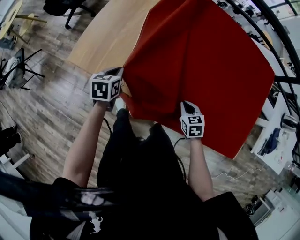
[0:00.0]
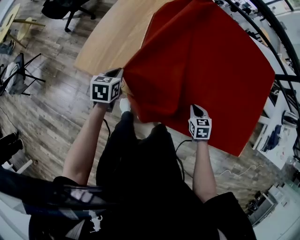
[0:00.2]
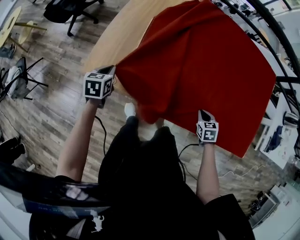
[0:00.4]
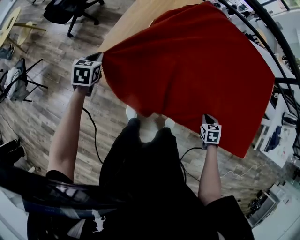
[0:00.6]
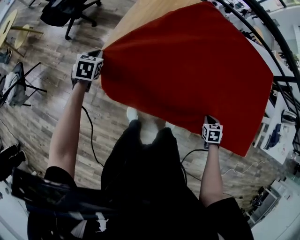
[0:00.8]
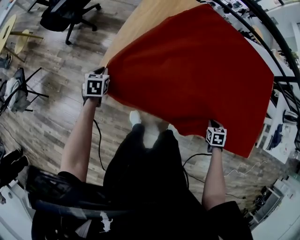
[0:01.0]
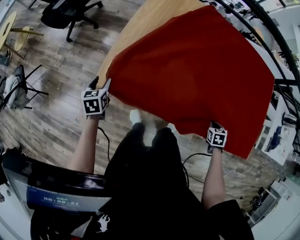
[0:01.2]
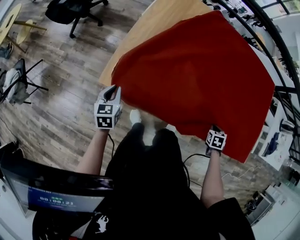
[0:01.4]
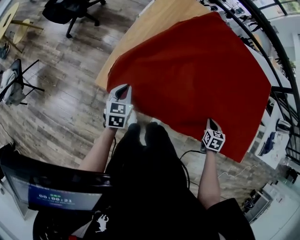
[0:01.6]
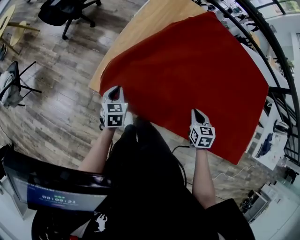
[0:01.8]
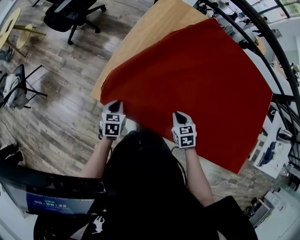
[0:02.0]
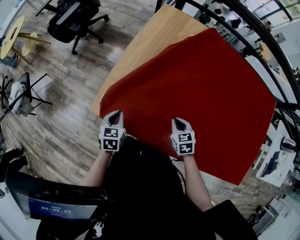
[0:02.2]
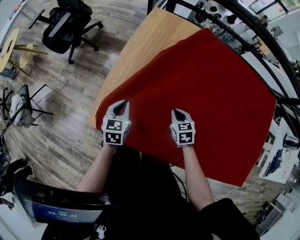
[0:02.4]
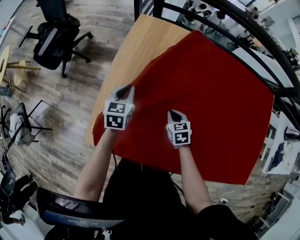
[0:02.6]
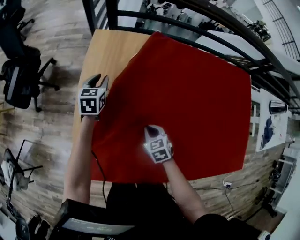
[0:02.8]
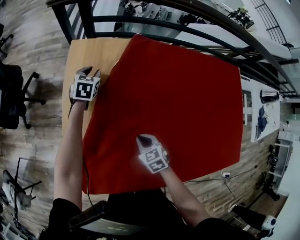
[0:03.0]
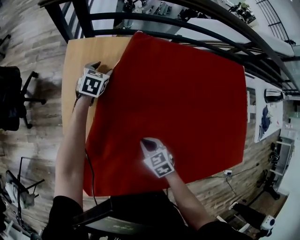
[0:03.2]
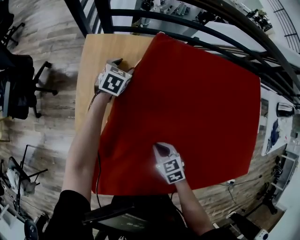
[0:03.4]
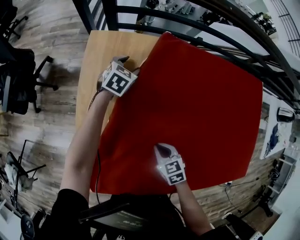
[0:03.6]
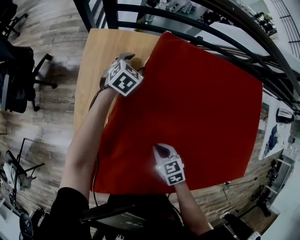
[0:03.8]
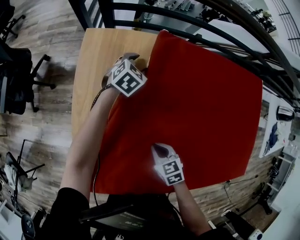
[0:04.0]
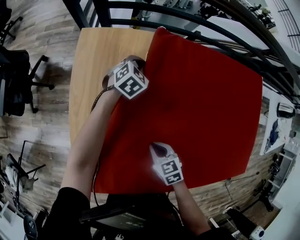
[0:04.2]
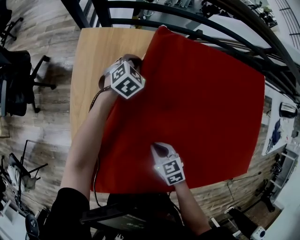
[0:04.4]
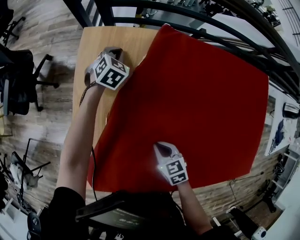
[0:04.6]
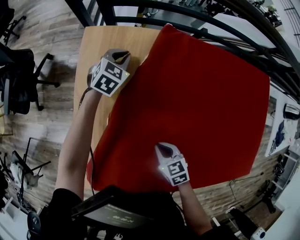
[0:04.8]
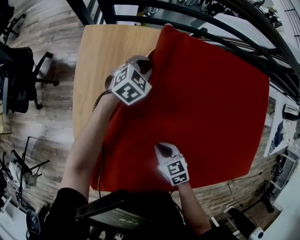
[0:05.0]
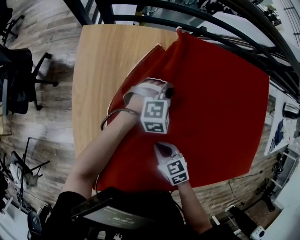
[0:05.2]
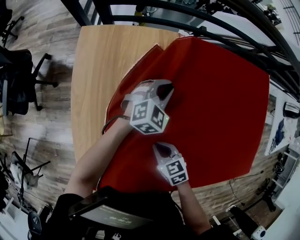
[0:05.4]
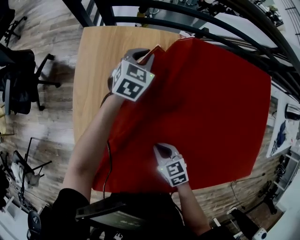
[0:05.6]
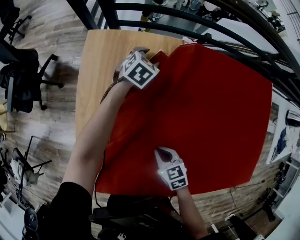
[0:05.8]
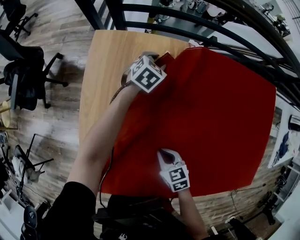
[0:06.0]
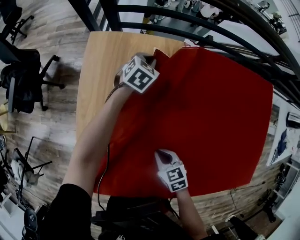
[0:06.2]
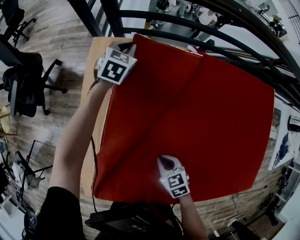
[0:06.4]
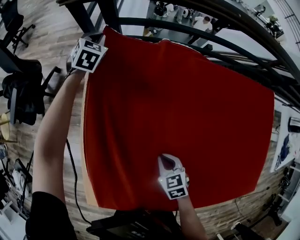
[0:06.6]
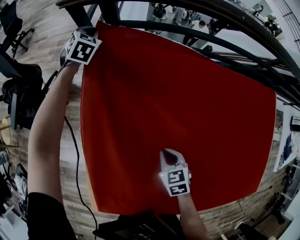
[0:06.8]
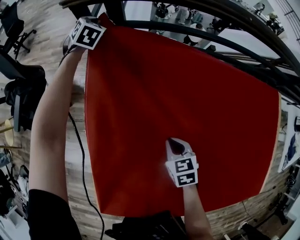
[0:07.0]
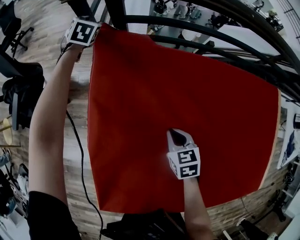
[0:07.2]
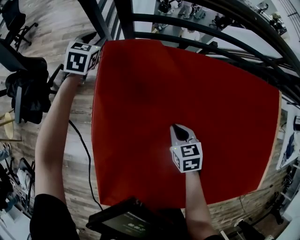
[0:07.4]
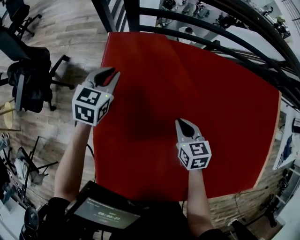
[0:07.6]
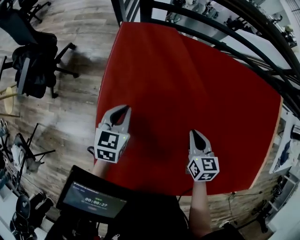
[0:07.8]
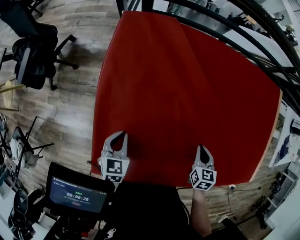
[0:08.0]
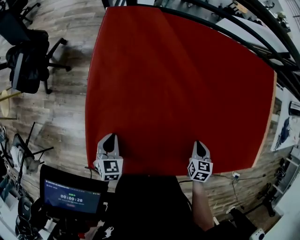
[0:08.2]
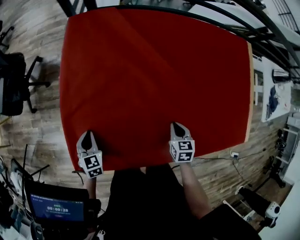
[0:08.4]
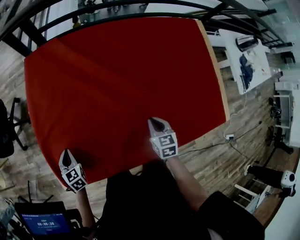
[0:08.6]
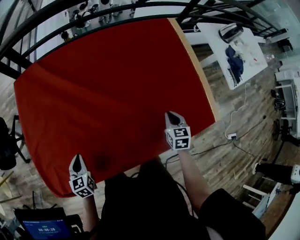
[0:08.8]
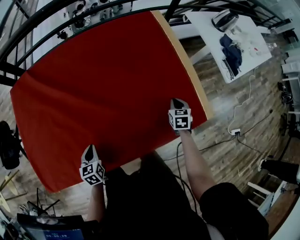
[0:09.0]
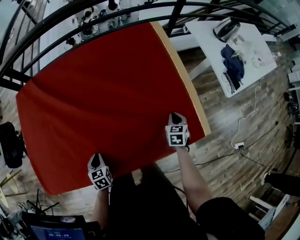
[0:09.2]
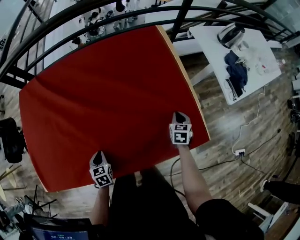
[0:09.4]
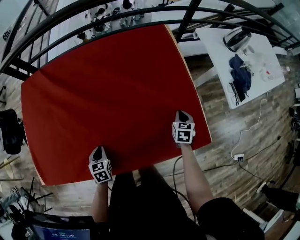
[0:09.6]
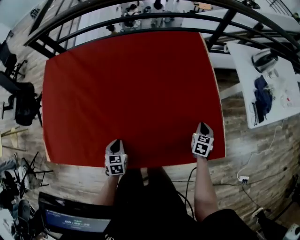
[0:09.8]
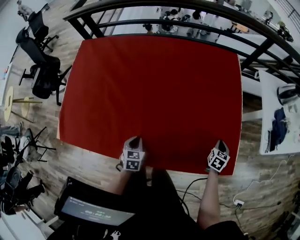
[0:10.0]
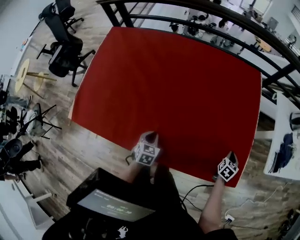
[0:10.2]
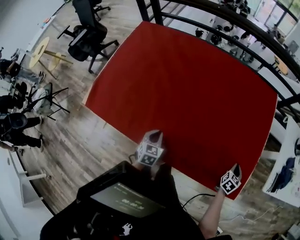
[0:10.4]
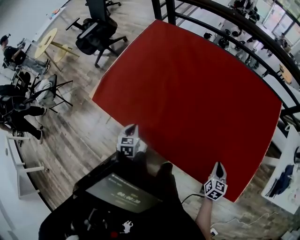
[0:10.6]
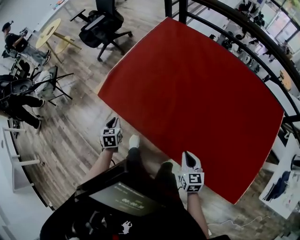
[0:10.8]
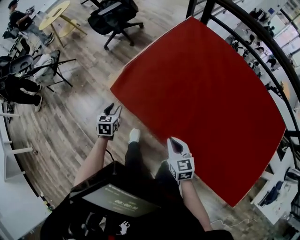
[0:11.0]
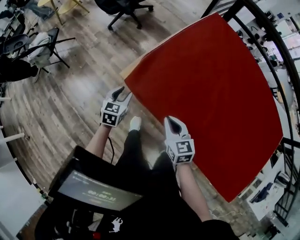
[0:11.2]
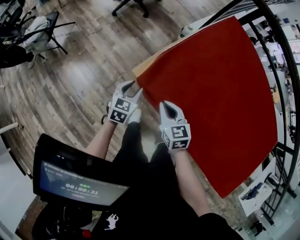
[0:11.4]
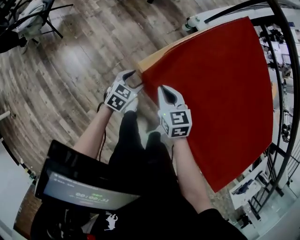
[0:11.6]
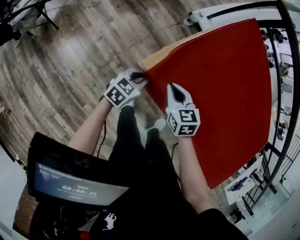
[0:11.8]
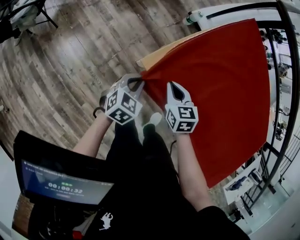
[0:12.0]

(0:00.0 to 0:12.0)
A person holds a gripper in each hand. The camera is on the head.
0:00.0 - 0:01.6: The right gripper changes place by approximately 5 cm, and rotates some 30 degrees. The left gripper moves some 5 cm upward and comes back, and opens, then closes once more.
0:01.6 - 0:03.0: The left gripper is displaced forward by some 50 cm, changes its angle by some 30 degrees, and opens. The right gripper travels forward and to the left by approximately 35 cm, and turns by approximately 20 degrees.
0:03.0 - 0:04.4: The left gripper moves to the right, roughly 15 cm, swivels approximately 30 degrees, and closes its fingers.
0:04.4 - 0:06.0: The left gripper moves left and right over approximately 20 cm, changing direction 2 times, and opens its fingers.
0:06.0 - 0:07.6: The right gripper shifts approximately 15 cm forward. Meanwhile the left gripper heads to the left, covering some 25 cm, and moves about 30 cm forward and comes back.
0:07.6 - 0:09.0: The two grippers travel together, to the right and backward, roughly 70 cm. The right gripper turns by some 40 degrees.
0:09.0 - 0:10.4: The two grippers go approximately 5 cm to the right.
0:10.4 - 0:12.0: Both grippers are carried some 70 cm. The right gripper rotates roughly 70 degrees. The left gripper opens, then closes again.

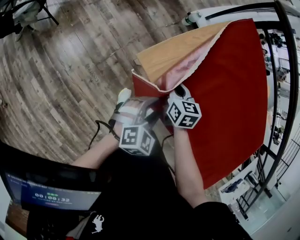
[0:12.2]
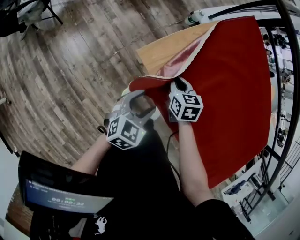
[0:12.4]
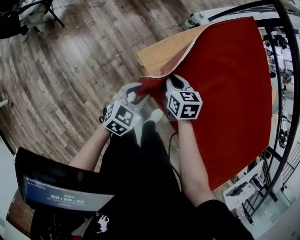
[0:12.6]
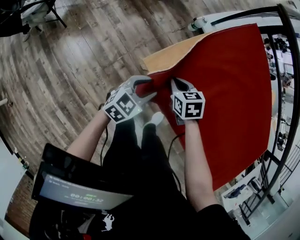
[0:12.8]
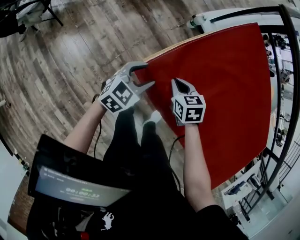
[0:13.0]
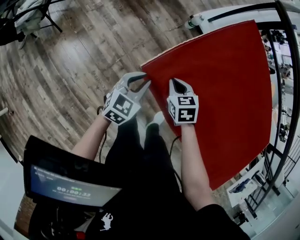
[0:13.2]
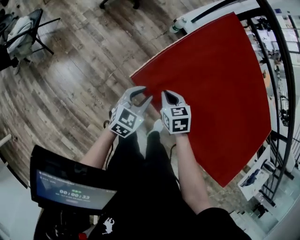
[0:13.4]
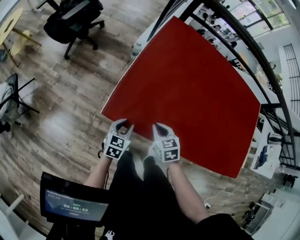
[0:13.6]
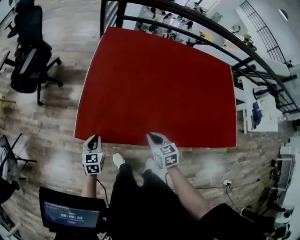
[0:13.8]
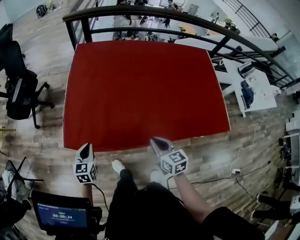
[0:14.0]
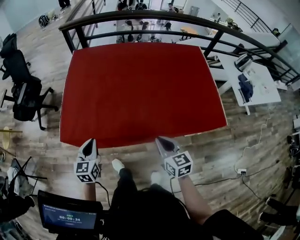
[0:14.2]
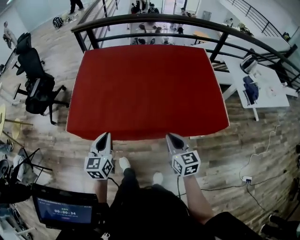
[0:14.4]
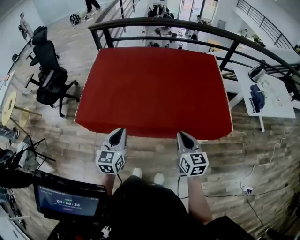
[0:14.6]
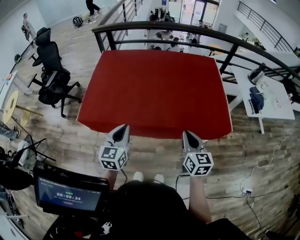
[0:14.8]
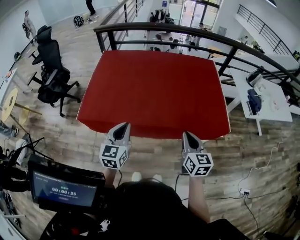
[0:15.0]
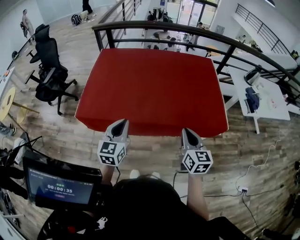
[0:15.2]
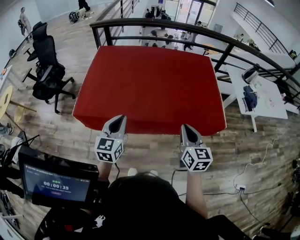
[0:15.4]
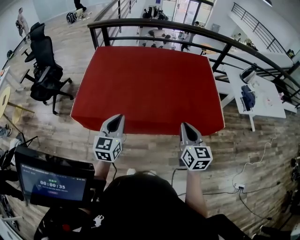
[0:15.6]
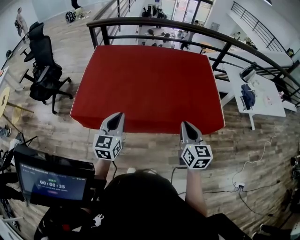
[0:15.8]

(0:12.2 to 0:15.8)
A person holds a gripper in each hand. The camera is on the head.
0:12.2 - 0:14.0: The left gripper shifts approximately 5 cm upward, and closes up; the right gripper changes place by some 40 cm, and changes its angle by some 40 degrees.
0:14.0 - 0:15.8: The left gripper is displaced to the right and upward by roughly 35 cm, and swivels about 20 degrees; the right gripper is displaced to the right, upward and backward by some 30 cm, and rotates some 20 degrees.

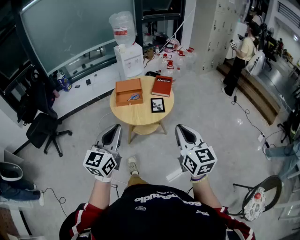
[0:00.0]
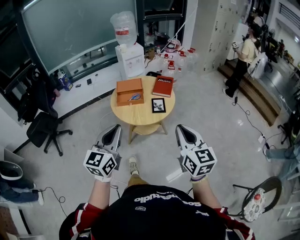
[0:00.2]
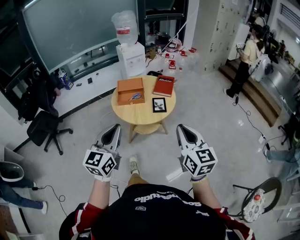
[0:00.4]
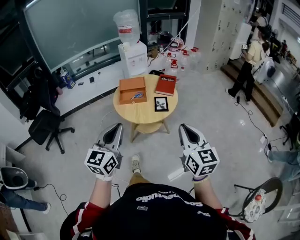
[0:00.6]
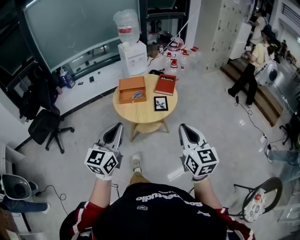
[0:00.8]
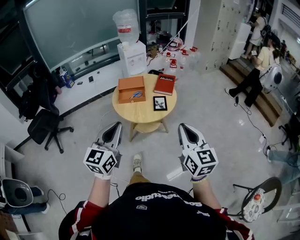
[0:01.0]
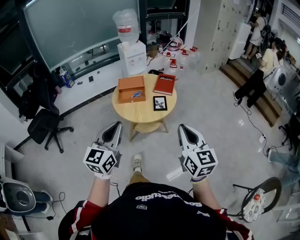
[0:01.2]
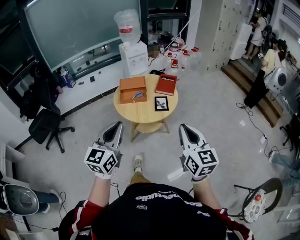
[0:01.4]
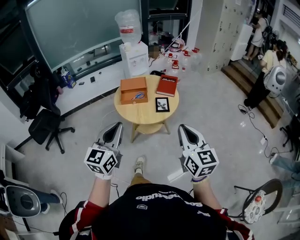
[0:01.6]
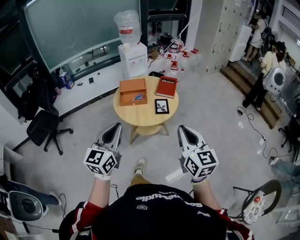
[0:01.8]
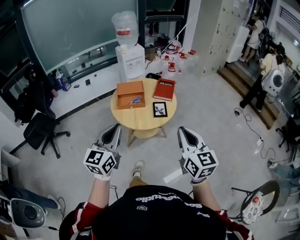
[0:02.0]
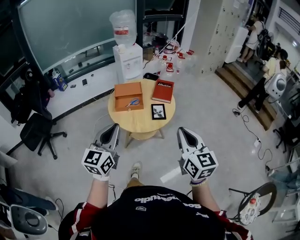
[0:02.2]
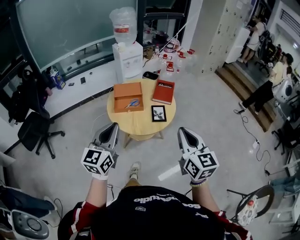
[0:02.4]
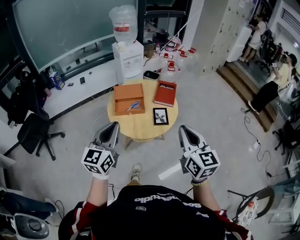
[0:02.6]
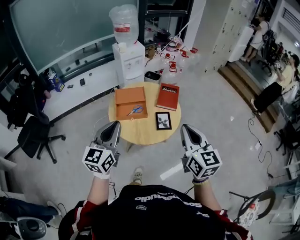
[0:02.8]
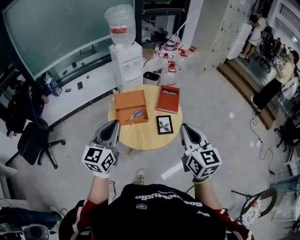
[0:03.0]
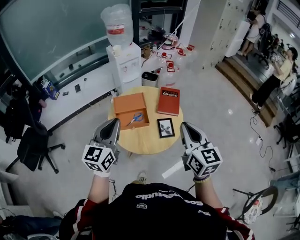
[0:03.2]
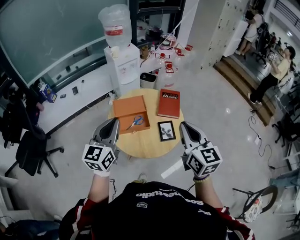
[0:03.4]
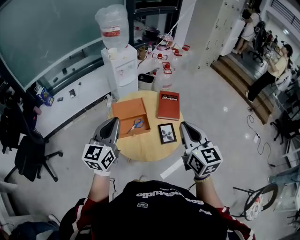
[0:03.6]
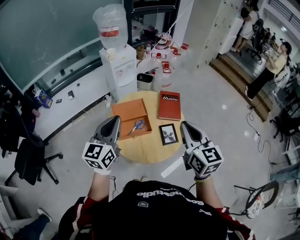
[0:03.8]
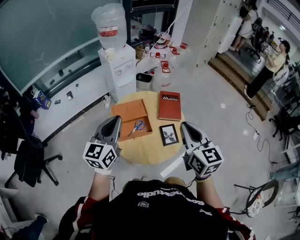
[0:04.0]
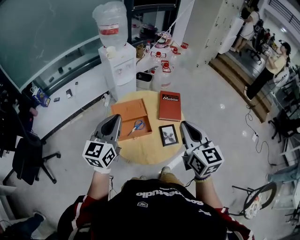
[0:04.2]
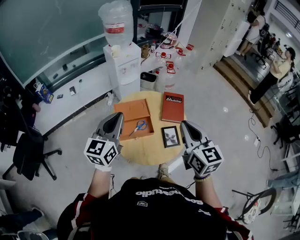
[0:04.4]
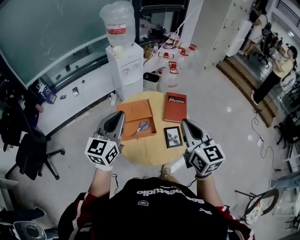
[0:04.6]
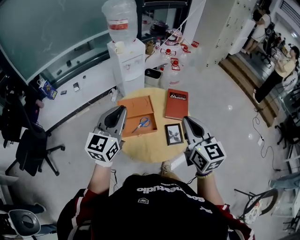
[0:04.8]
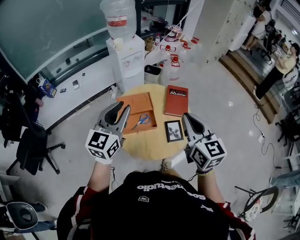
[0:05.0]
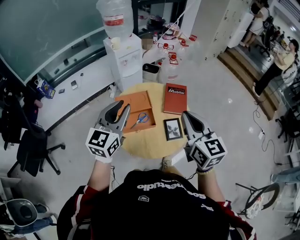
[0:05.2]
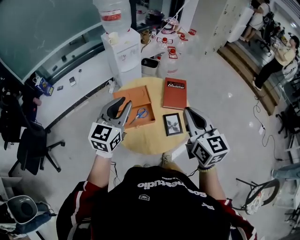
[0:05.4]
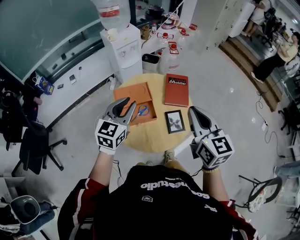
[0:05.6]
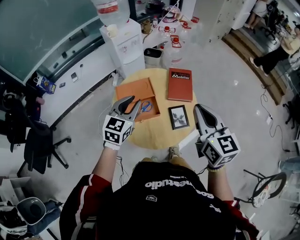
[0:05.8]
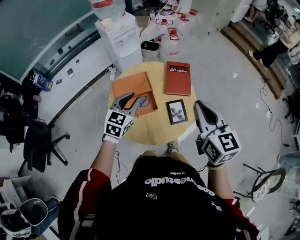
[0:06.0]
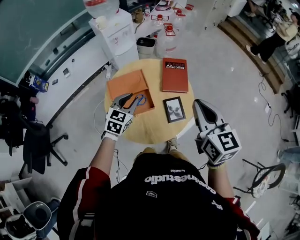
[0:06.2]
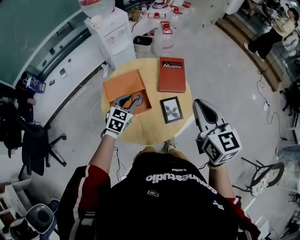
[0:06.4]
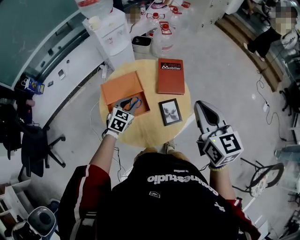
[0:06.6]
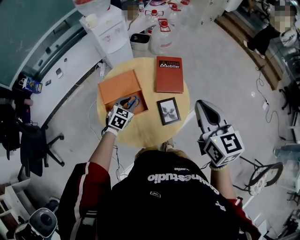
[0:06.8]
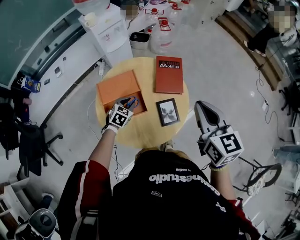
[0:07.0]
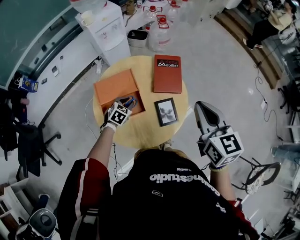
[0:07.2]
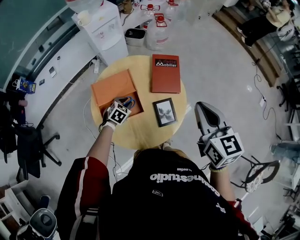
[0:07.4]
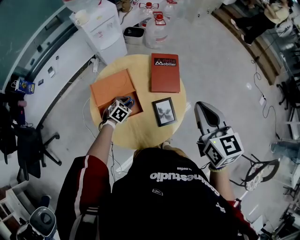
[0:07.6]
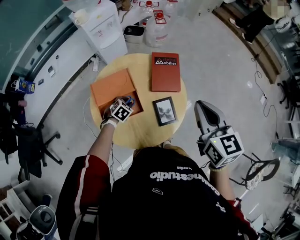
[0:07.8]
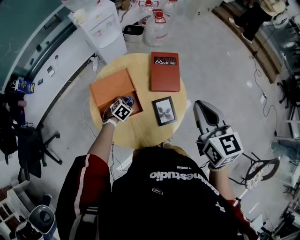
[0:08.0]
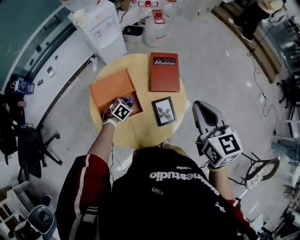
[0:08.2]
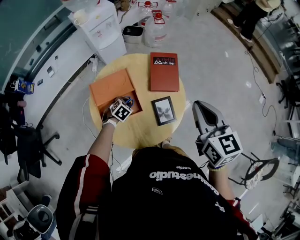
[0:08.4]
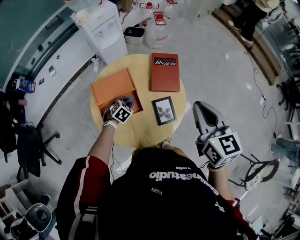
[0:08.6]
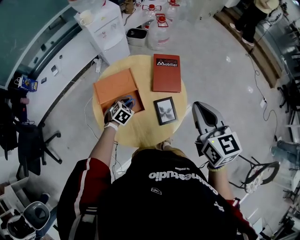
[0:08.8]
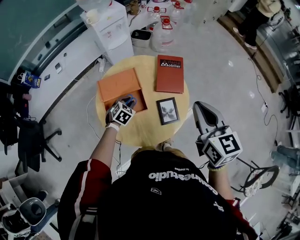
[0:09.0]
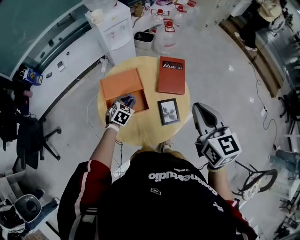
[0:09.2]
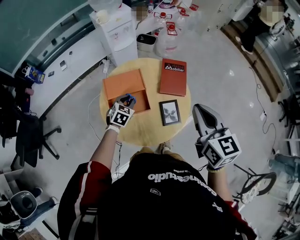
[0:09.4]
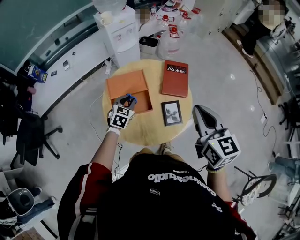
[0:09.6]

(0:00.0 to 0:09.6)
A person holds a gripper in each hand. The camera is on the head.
0:00.0 - 0:01.6: The grippers move only a little.
0:01.6 - 0:03.2: Both grippers travel together forward, approximately 30 cm.
0:03.2 - 0:04.8: The left gripper travels forward by roughly 10 cm; the right gripper is displaced forward and to the left by about 10 cm.
0:04.8 - 0:06.4: The right gripper moves to the right and downward, approximately 10 cm. Meanwhile the left gripper travels downward by some 25 cm, angles its fingers downward, by roughly 30 degrees, and opens.
0:06.4 - 0:08.0: The left gripper travels downward by roughly 20 cm, and tilts its fingers some 30 degrees downward. The right gripper travels forward by about 5 cm.
0:08.0 - 0:09.6: The right gripper is displaced backward by approximately 5 cm, while the left gripper heads upward, covering some 15 cm, and swivels approximately 30 degrees.
